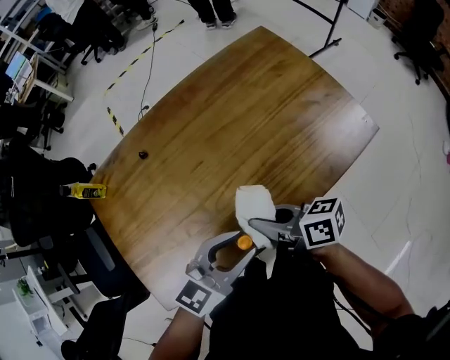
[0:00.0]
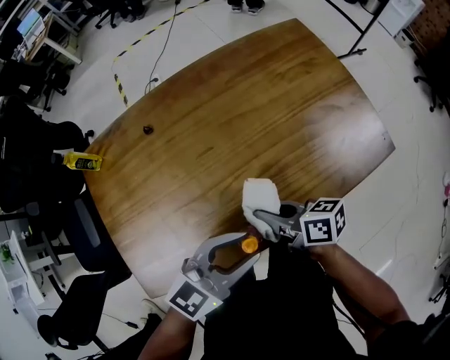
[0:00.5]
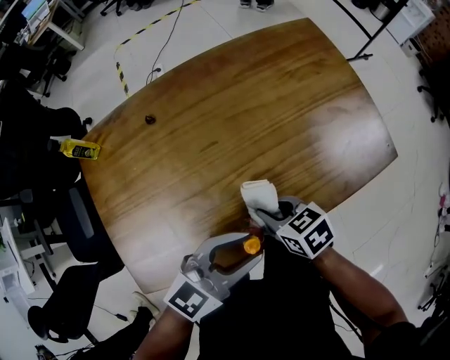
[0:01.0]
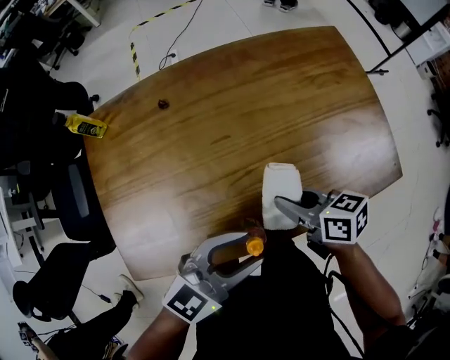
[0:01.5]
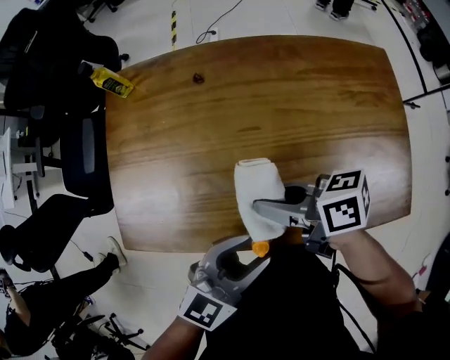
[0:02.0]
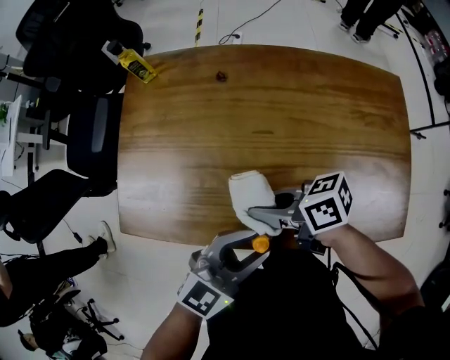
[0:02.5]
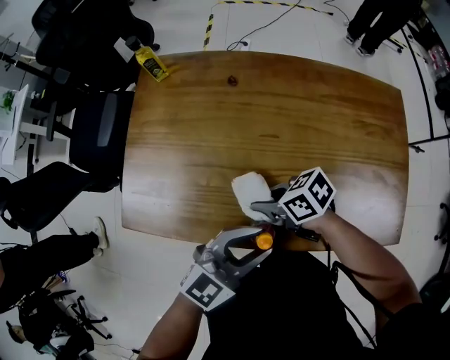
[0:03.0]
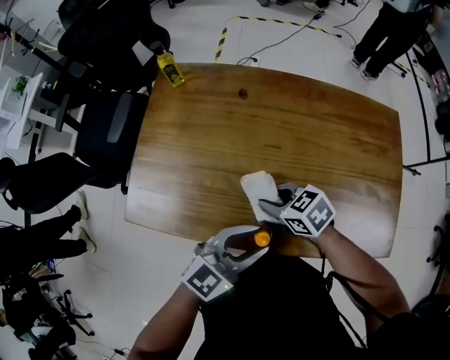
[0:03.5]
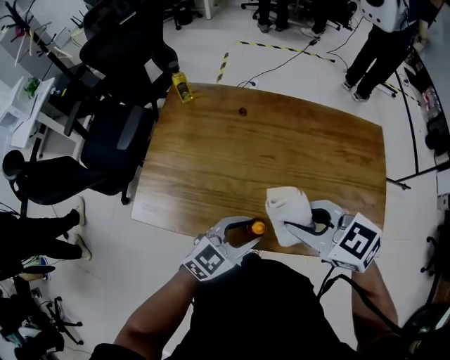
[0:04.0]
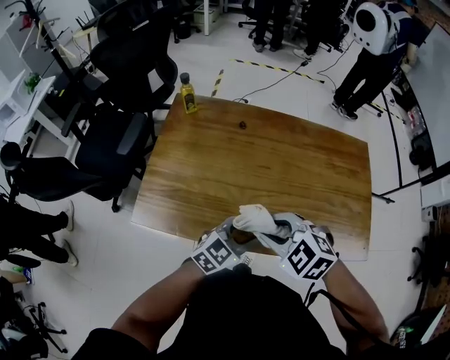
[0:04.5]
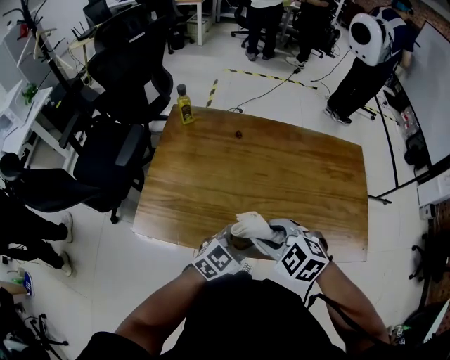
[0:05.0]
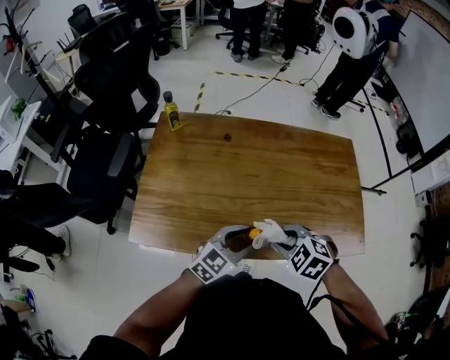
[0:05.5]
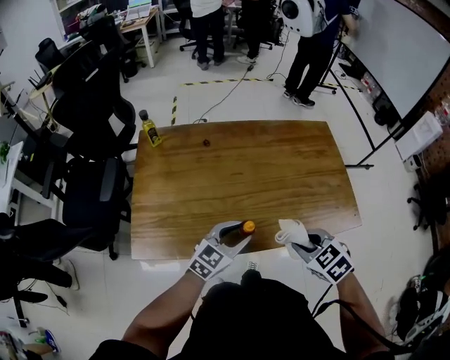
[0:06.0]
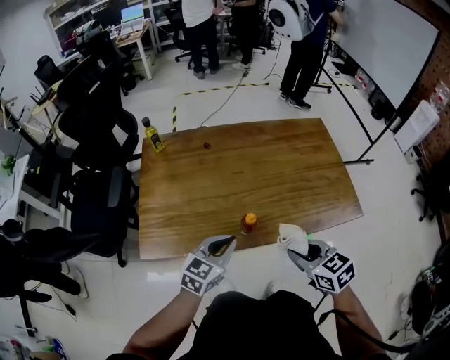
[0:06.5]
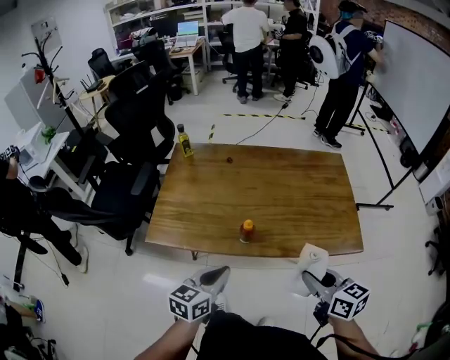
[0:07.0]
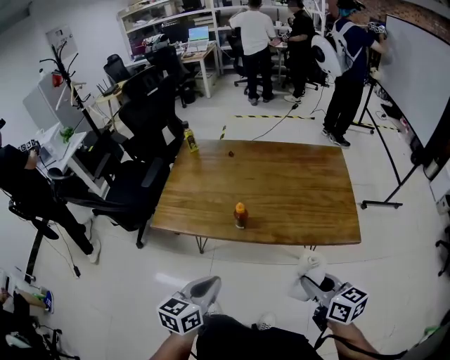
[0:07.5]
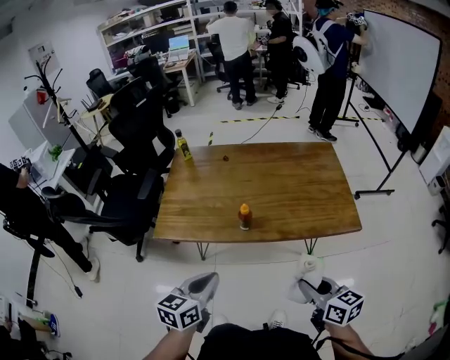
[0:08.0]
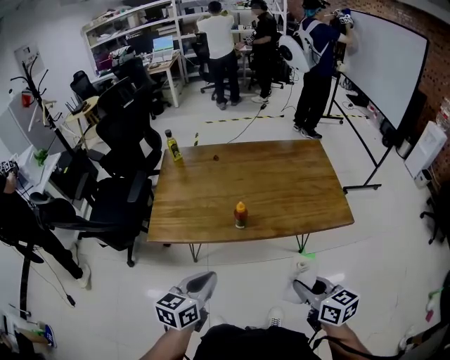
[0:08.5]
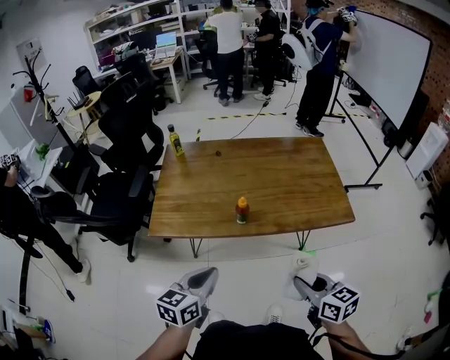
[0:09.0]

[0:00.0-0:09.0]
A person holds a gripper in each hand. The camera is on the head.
0:00.0 to 0:02.0: The right gripper moves approximately 10 cm downward and comes back, and changes its angle by roughly 40 degrees. The left gripper rotates some 30 degrees.
0:02.0 to 0:04.5: The right gripper goes up and down, some 20 cm each way, reversing 2 times, and rolls counterclockwise, seen from behind, by some 70 degrees.
0:04.5 to 0:07.0: The right gripper goes roughly 25 cm to the right and backward, and rotates around the line of its fingers by some 60 degrees, clockwise from behind, while the left gripper is displaced backward and upward by some 20 cm, rotates about 30 degrees, and closes its fingers.
0:07.0 to 0:09.0: The two grippers go approximately 10 cm backward.

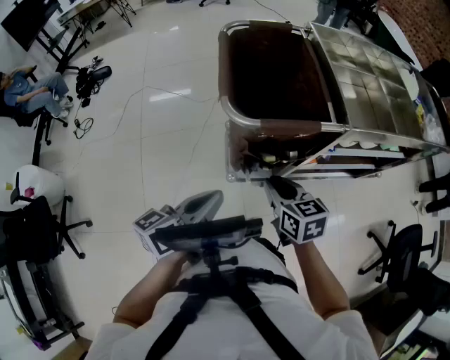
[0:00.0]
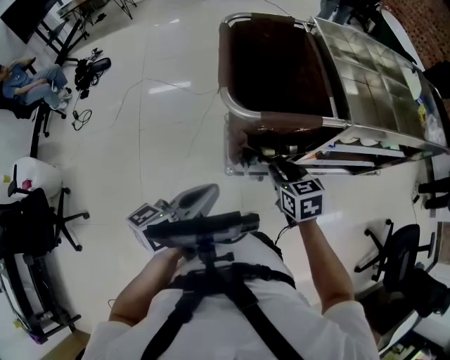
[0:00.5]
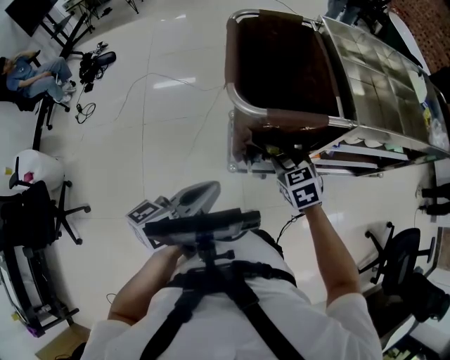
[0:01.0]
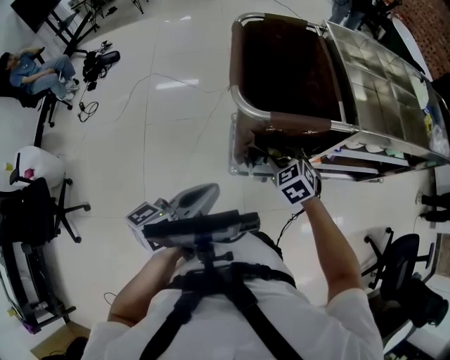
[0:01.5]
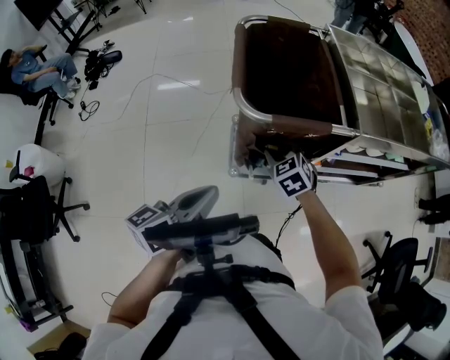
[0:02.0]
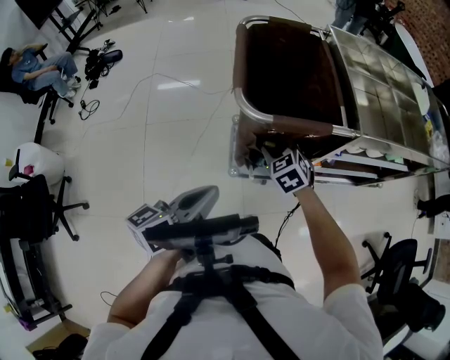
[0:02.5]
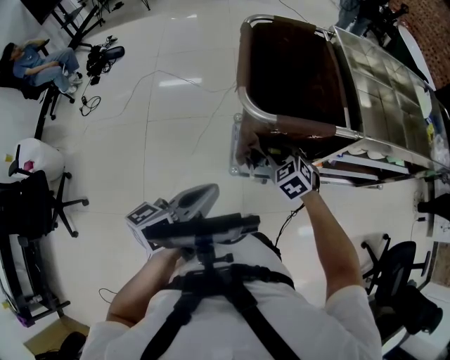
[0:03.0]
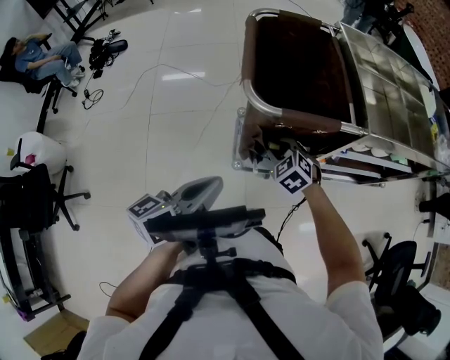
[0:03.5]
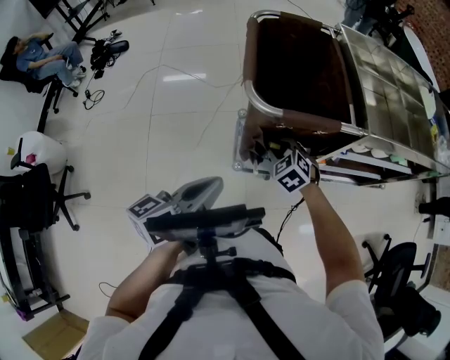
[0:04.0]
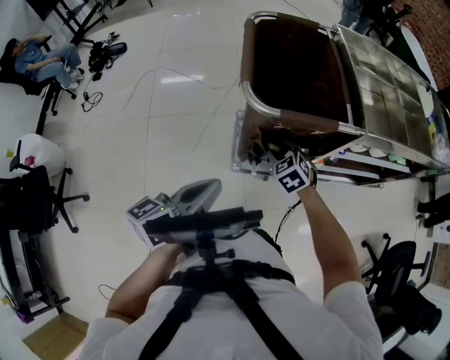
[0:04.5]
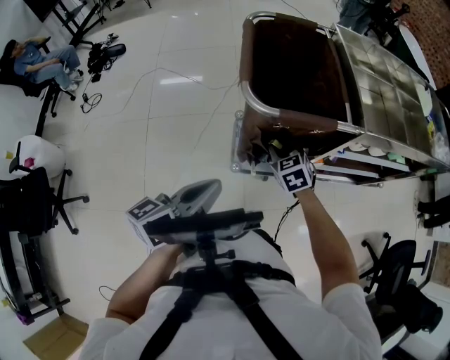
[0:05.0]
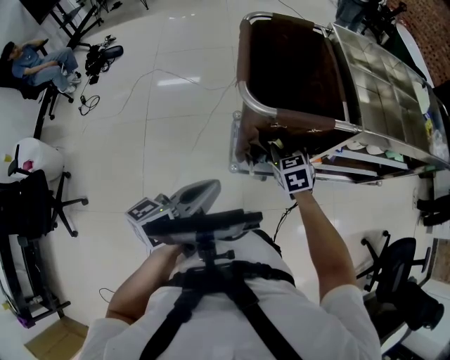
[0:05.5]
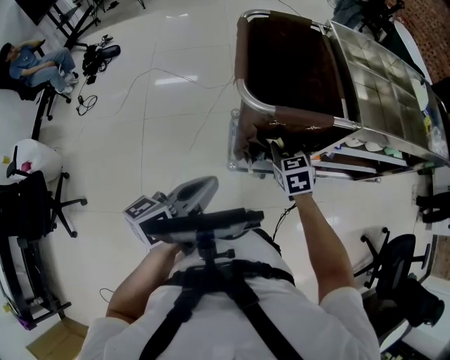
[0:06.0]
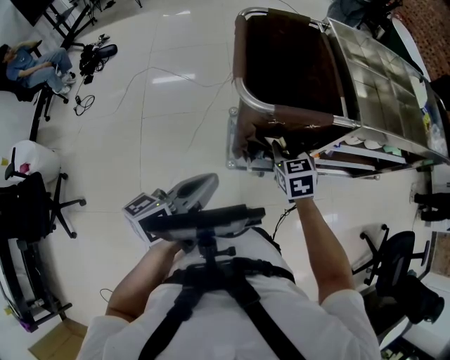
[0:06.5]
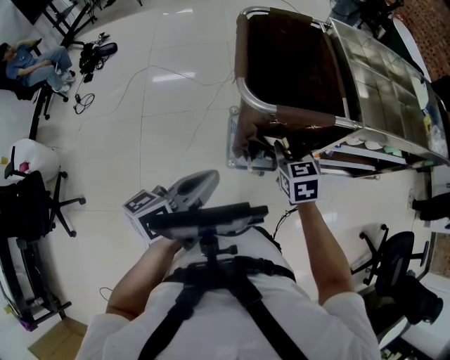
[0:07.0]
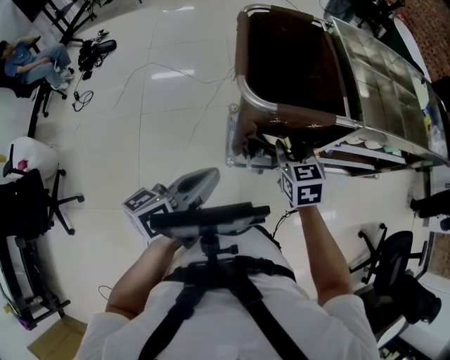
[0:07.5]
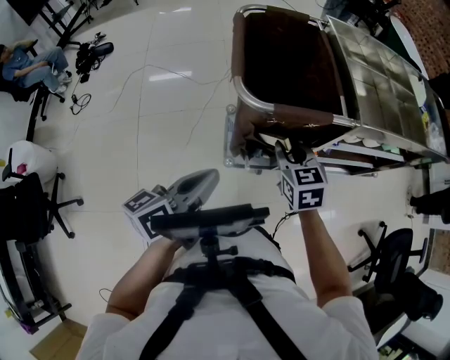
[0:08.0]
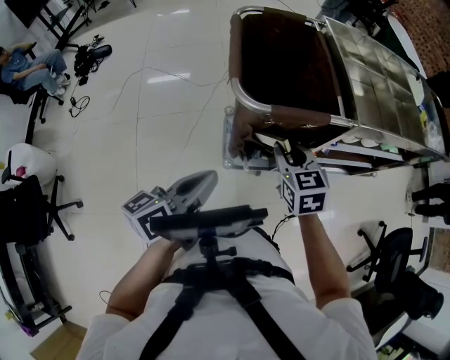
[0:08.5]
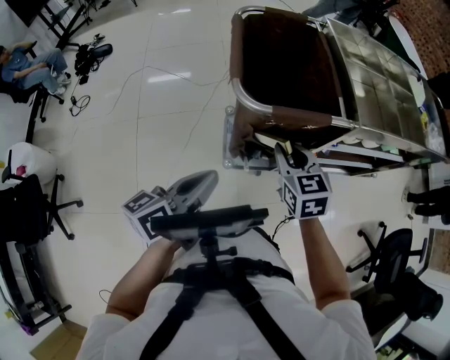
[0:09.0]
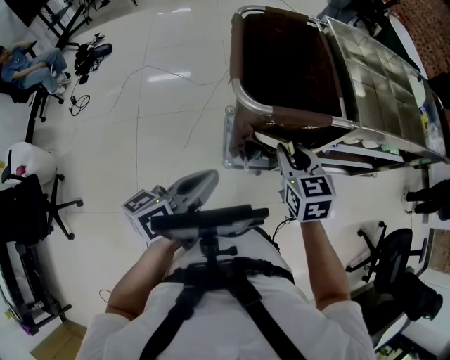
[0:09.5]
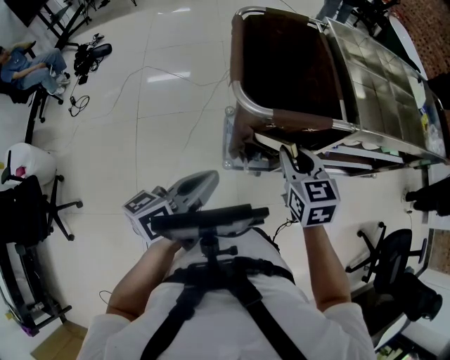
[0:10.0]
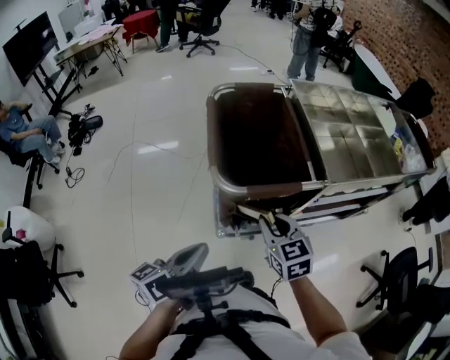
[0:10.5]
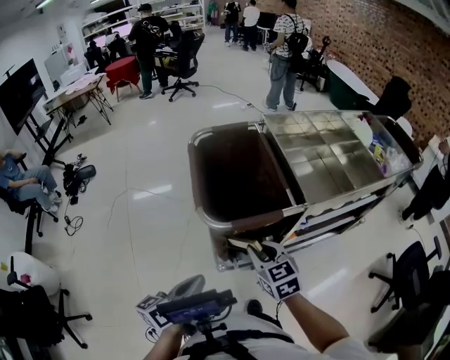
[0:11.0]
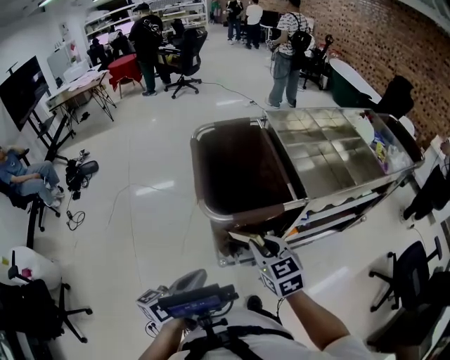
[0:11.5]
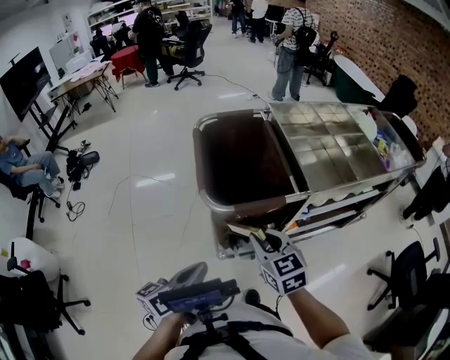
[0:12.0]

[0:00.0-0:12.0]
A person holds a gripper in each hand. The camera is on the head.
0:00.0 to 0:02.0: The right gripper shifts approximately 15 cm forward and downward, swivels some 40 degrees, and opens its fingers.
0:02.0 to 0:04.0: The grippers move only a little.
0:04.0 to 0:06.0: The right gripper changes its angle by approximately 30 degrees.
0:06.0 to 0:08.0: The right gripper goes approximately 5 cm upward.
0:08.0 to 0:10.0: The grippers make only small movements.
0:10.0 to 0:12.0: The grippers make only small movements.

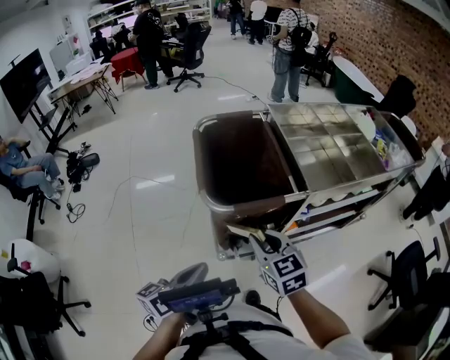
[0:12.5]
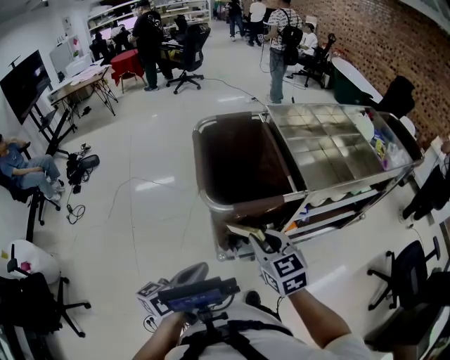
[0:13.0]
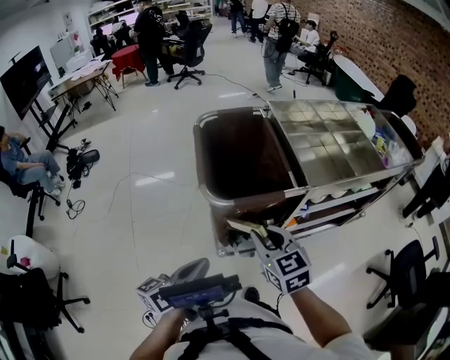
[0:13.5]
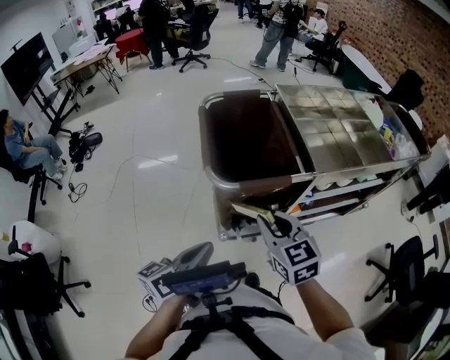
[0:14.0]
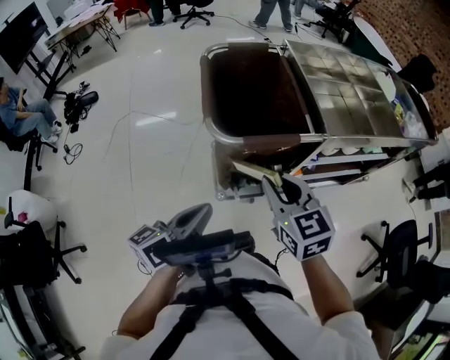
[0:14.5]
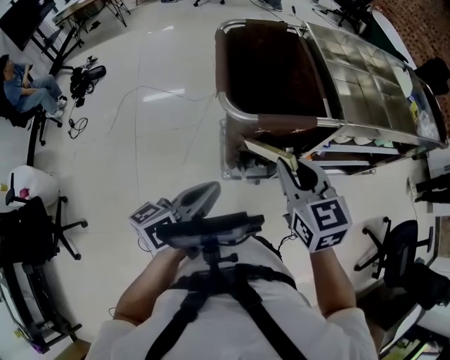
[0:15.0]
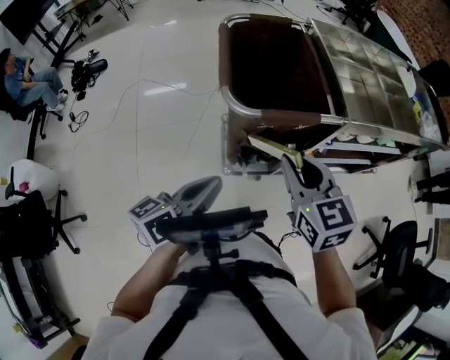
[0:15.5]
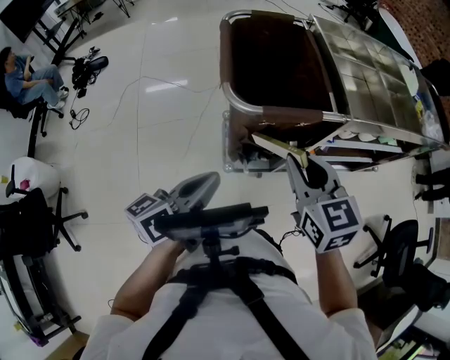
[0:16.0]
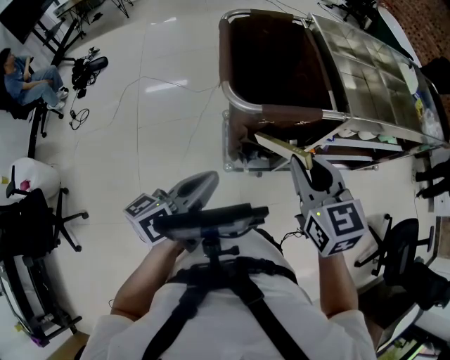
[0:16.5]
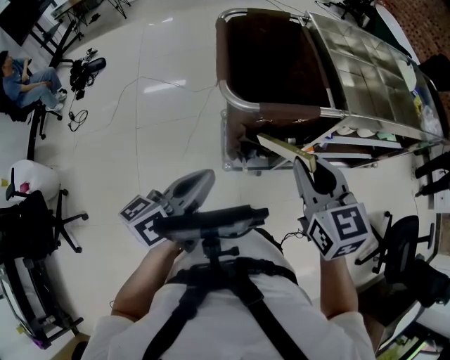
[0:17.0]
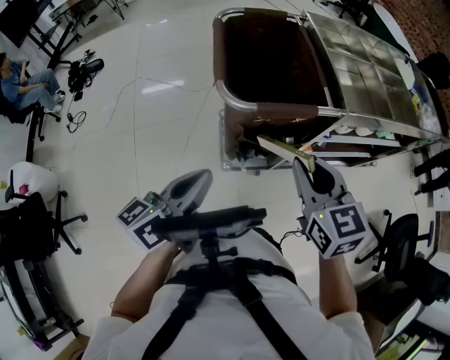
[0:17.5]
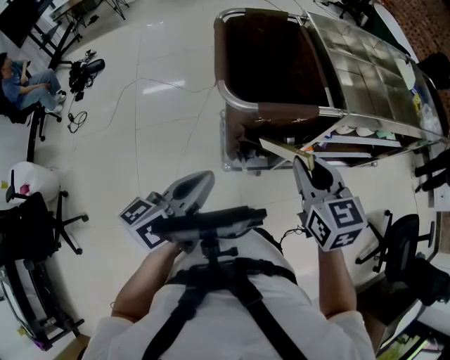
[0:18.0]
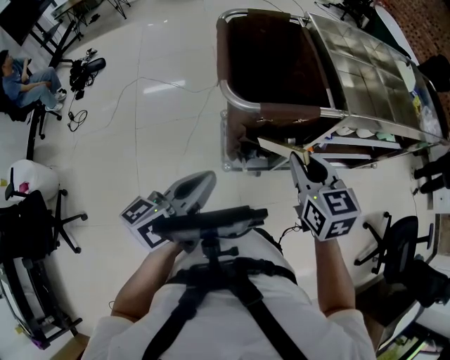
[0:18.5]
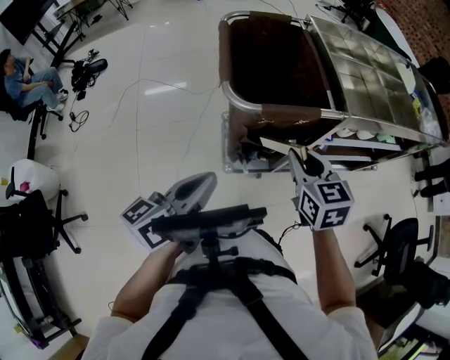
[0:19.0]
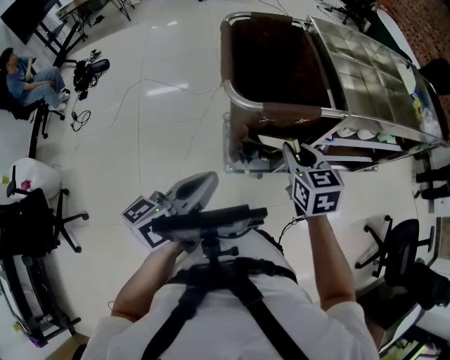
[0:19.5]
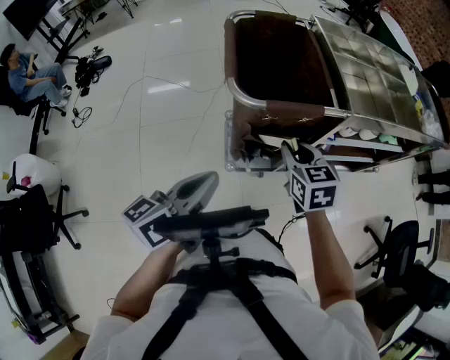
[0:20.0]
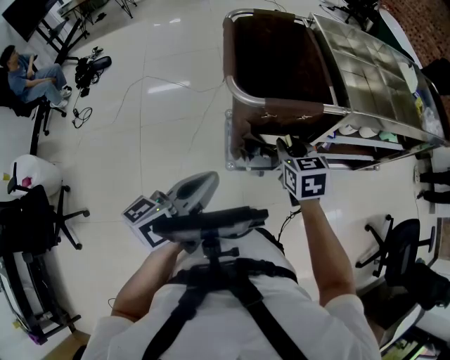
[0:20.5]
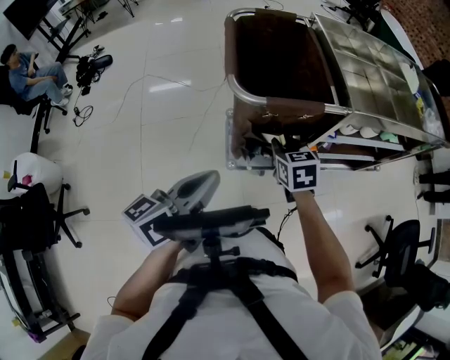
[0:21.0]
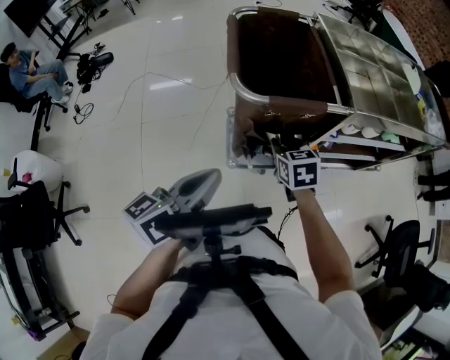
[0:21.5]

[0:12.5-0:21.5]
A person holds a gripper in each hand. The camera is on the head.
0:12.5 to 0:14.5: The grippers stay close to where they were, moving slightly.
0:14.5 to 0:17.0: The grippers make only small movements.
0:17.0 to 0:19.5: The right gripper is displaced downward and forward by approximately 10 cm.
0:19.5 to 0:21.5: The right gripper goes roughly 10 cm downward.
